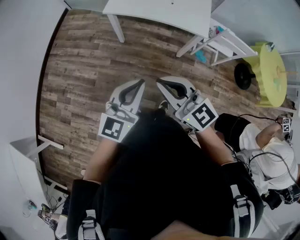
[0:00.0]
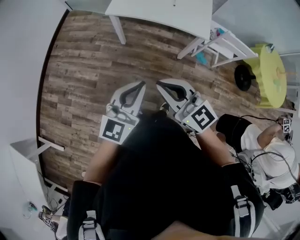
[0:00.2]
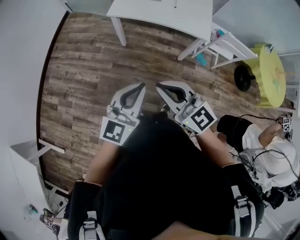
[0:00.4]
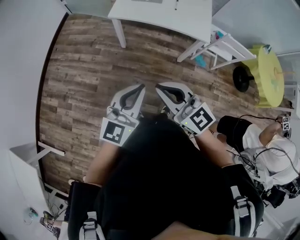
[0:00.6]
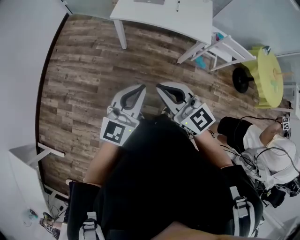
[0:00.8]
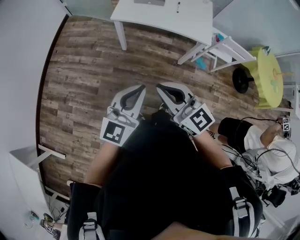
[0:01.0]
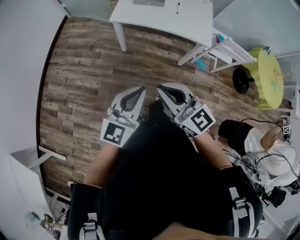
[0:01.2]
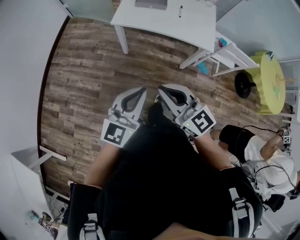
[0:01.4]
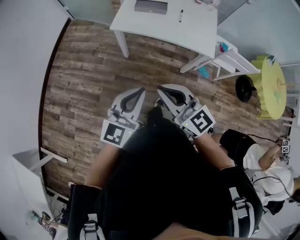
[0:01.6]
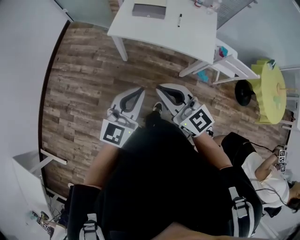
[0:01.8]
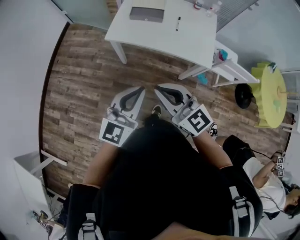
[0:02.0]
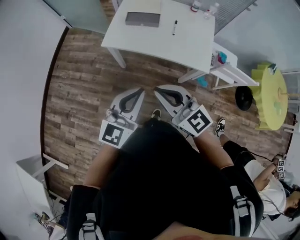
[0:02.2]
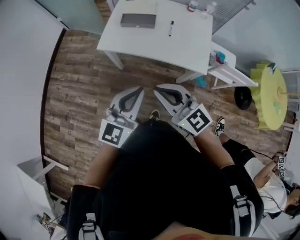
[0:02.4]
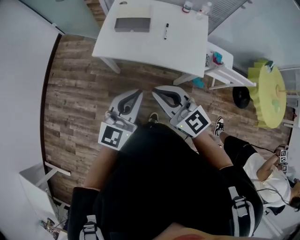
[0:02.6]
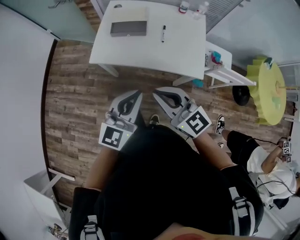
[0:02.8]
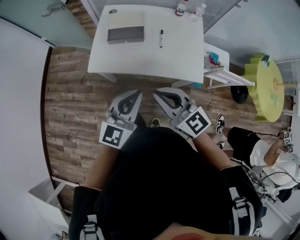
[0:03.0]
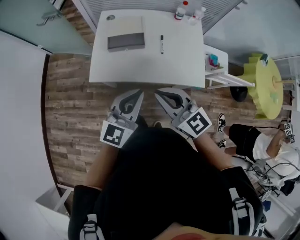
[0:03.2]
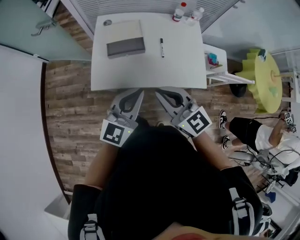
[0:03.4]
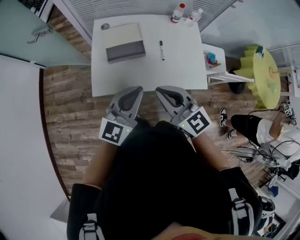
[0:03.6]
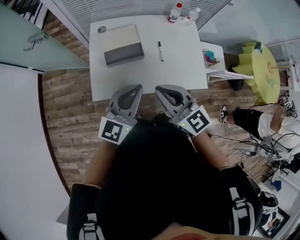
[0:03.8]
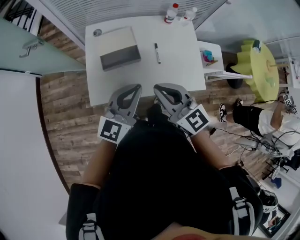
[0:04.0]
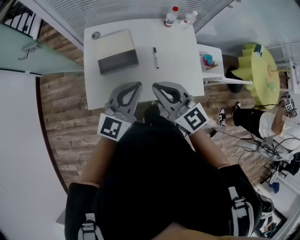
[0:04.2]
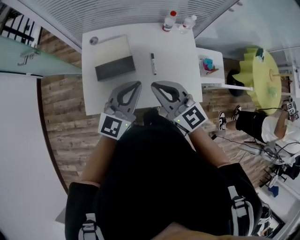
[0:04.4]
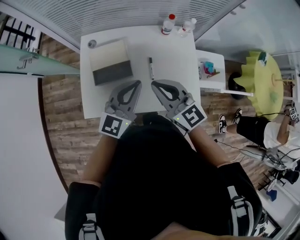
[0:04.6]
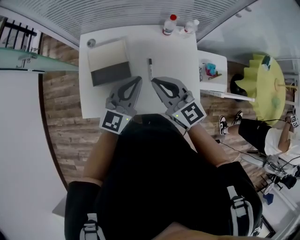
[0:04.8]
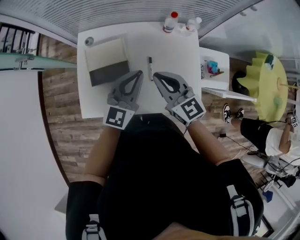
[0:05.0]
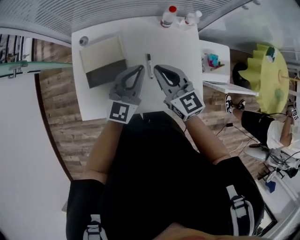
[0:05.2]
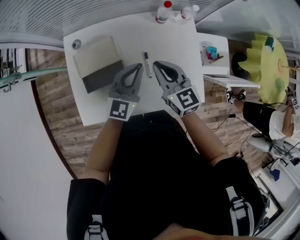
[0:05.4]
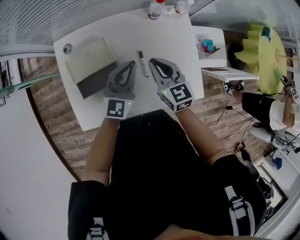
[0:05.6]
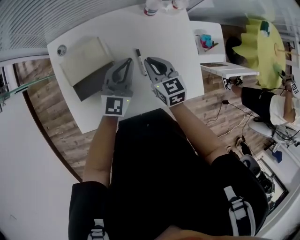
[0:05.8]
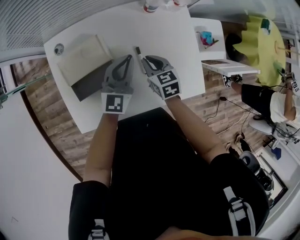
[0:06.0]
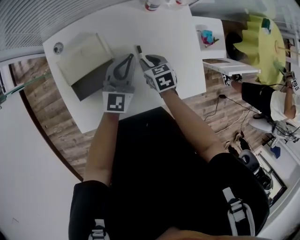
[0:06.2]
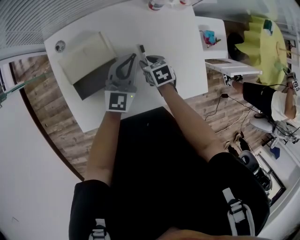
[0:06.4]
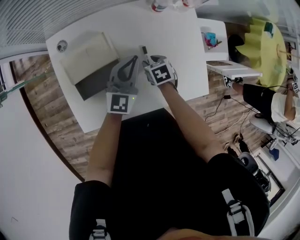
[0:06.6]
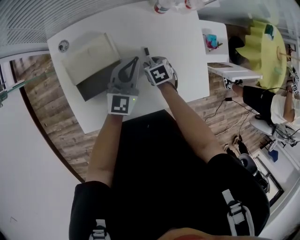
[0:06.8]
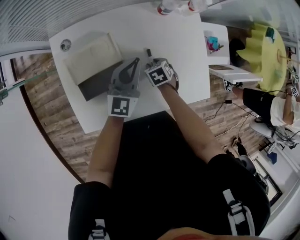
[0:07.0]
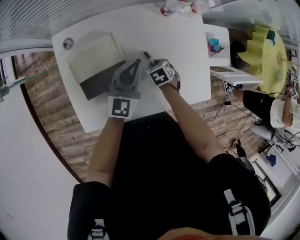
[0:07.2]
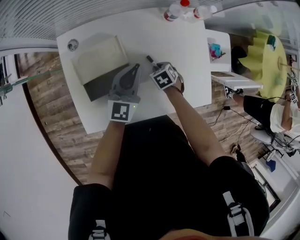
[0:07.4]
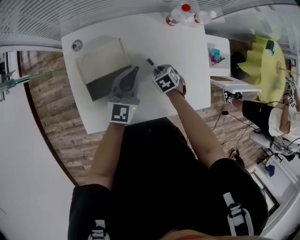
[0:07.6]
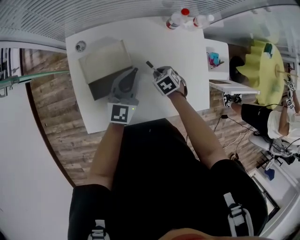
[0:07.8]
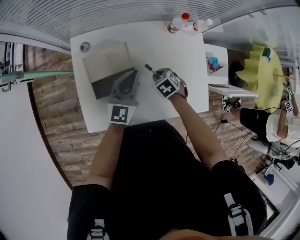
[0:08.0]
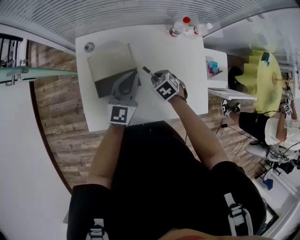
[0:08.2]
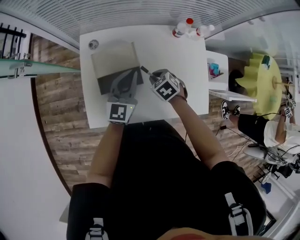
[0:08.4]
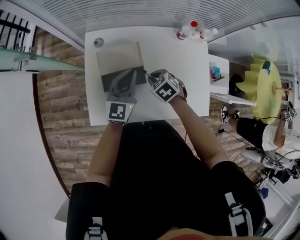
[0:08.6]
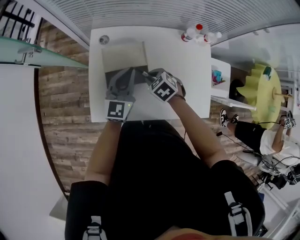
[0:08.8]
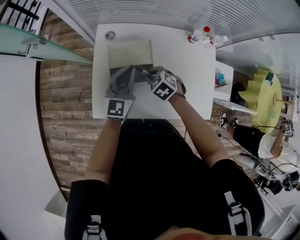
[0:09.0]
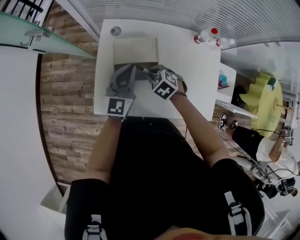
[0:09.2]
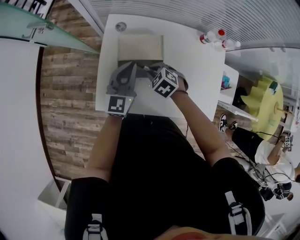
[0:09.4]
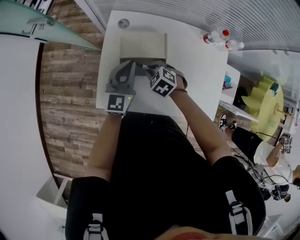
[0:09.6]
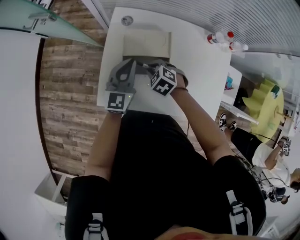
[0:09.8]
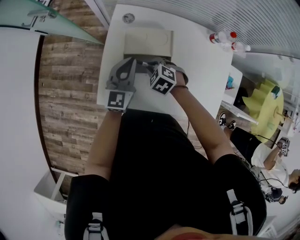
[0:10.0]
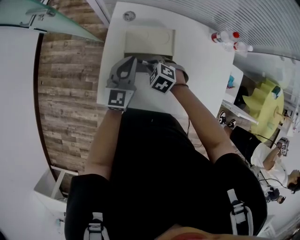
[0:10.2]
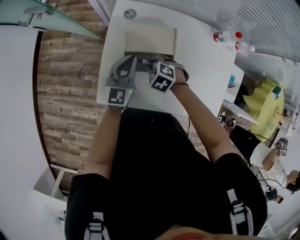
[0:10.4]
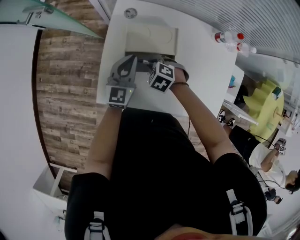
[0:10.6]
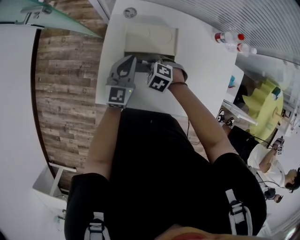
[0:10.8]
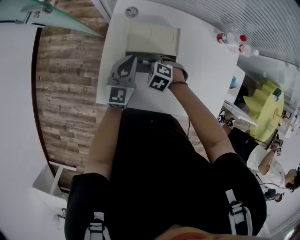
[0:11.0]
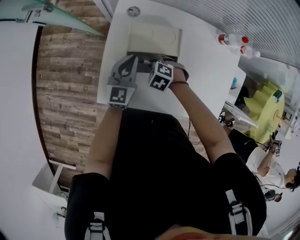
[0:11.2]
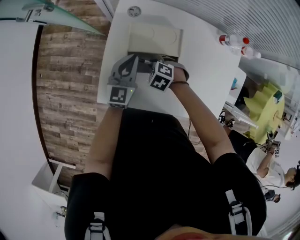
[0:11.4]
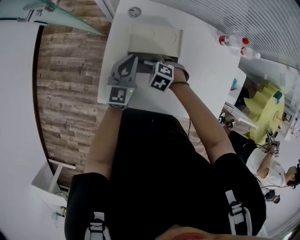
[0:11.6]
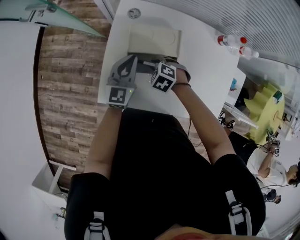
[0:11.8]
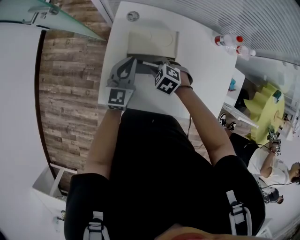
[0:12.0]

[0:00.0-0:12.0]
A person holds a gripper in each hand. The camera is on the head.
0:00.0 to 0:01.6: The grippers both shift forward by about 10 cm.
0:01.6 to 0:03.0: The grippers both shift forward and to the right by roughly 30 cm.
0:03.0 to 0:04.4: Both grippers travel together forward, roughly 25 cm.
0:04.4 to 0:06.0: The right gripper moves downward and forward, some 35 cm, and points its fingers some 40 degrees further downward; the left gripper shifts approximately 25 cm forward and downward.
0:06.0 to 0:07.6: The left gripper ends up roughly 5 cm from where it was, while the right gripper shifts roughly 10 cm downward, rotates about 30 degrees, and opens, then closes again.
0:07.6 to 0:09.0: The left gripper moves approximately 15 cm; the right gripper shifts by about 20 cm, and swivels about 30 degrees.
0:09.0 to 0:10.4: The left gripper shifts approximately 10 cm downward and to the left; the right gripper shifts roughly 10 cm to the left and downward, and changes its angle by about 20 degrees.
0:10.4 to 0:12.0: The grippers make only small movements.

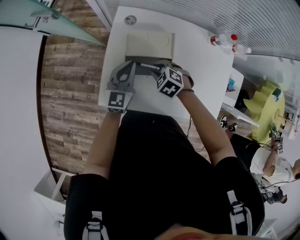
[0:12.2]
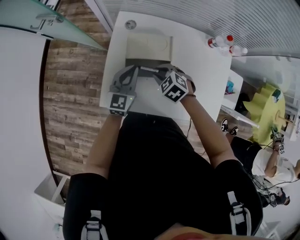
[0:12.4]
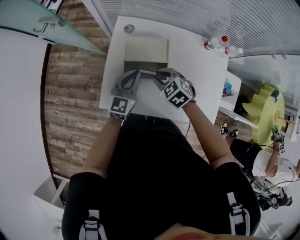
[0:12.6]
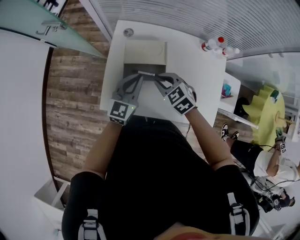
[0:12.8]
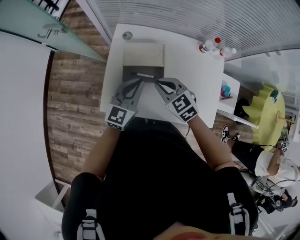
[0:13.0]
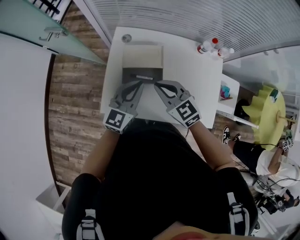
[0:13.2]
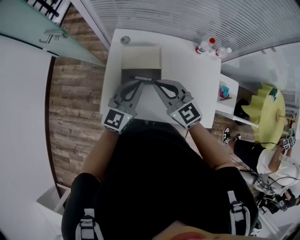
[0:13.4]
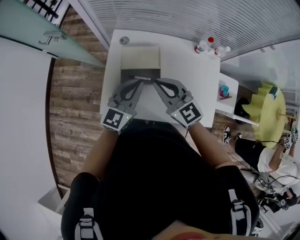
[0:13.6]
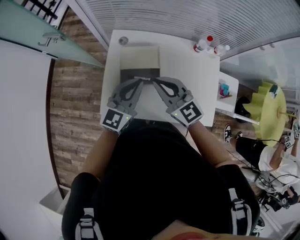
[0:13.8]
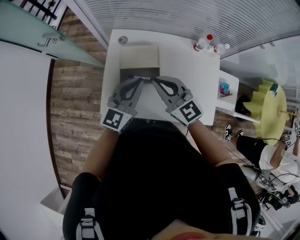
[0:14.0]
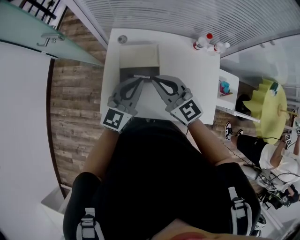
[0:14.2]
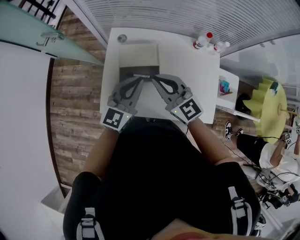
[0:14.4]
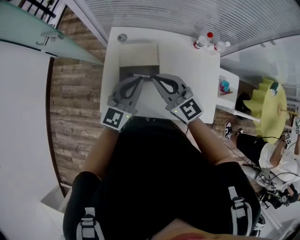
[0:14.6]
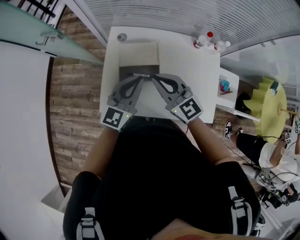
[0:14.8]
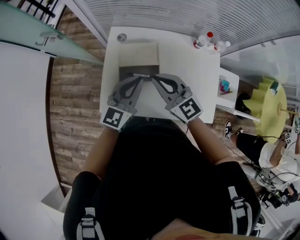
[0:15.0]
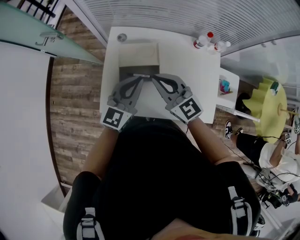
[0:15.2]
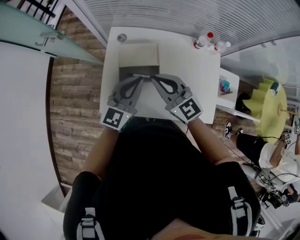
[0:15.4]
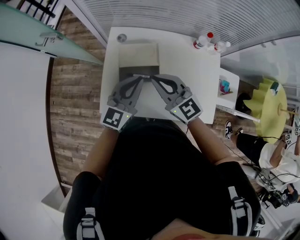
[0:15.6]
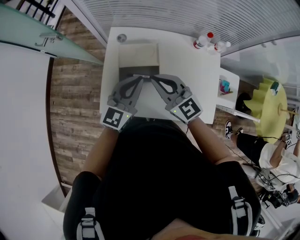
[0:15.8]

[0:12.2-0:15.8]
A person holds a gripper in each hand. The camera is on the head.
0:12.2 to 0:14.0: The right gripper heads upward, covering approximately 25 cm, and points its fingers about 60 degrees further upward, while the left gripper is displaced upward, backward and to the right by about 20 cm.
0:14.0 to 0:15.8: Both grippers stay about where they are.

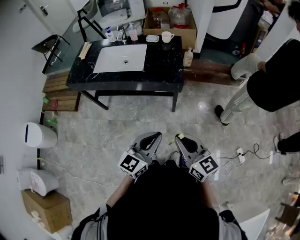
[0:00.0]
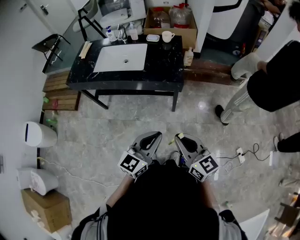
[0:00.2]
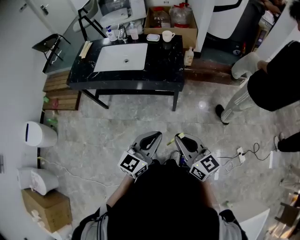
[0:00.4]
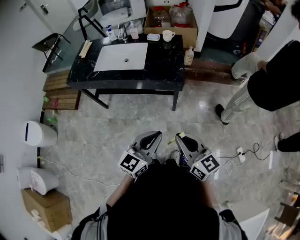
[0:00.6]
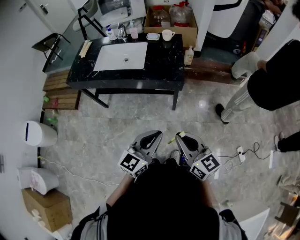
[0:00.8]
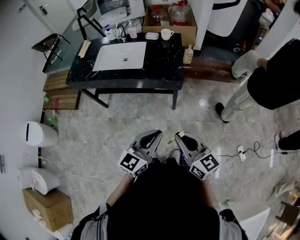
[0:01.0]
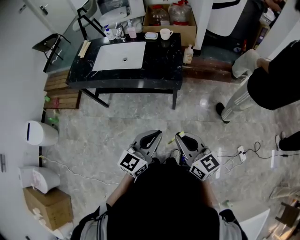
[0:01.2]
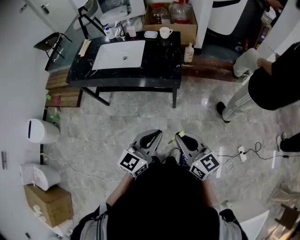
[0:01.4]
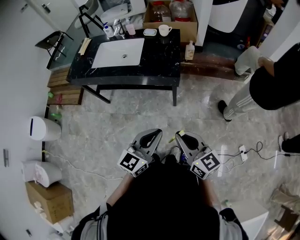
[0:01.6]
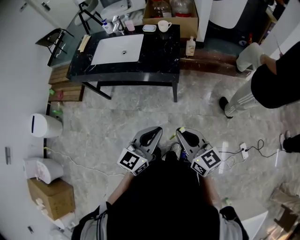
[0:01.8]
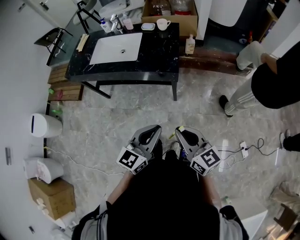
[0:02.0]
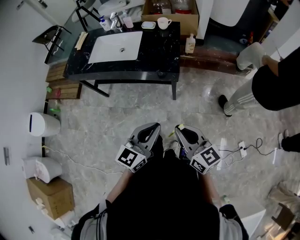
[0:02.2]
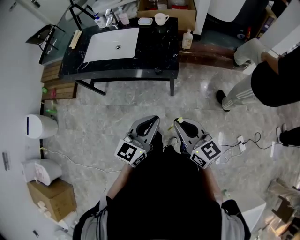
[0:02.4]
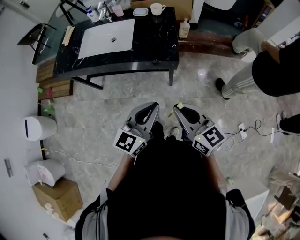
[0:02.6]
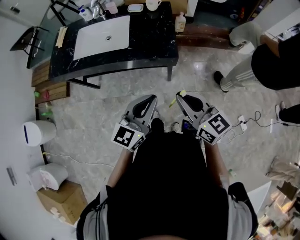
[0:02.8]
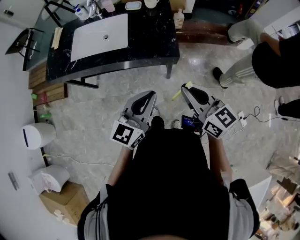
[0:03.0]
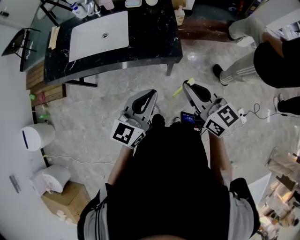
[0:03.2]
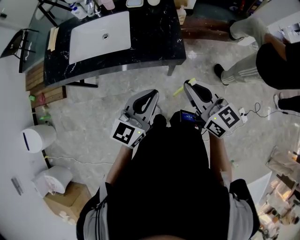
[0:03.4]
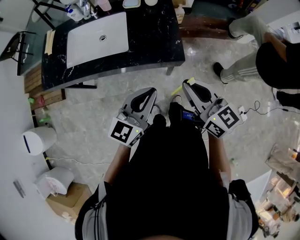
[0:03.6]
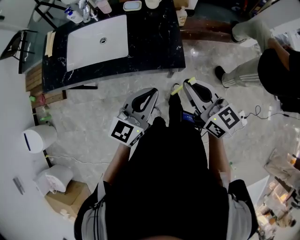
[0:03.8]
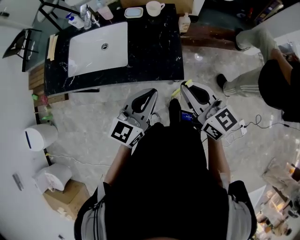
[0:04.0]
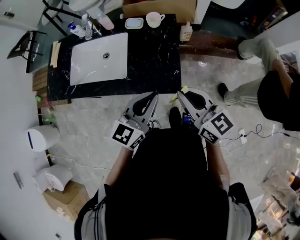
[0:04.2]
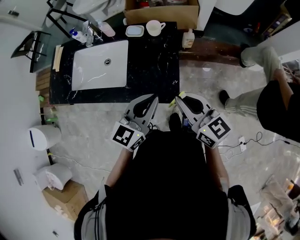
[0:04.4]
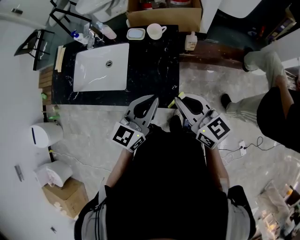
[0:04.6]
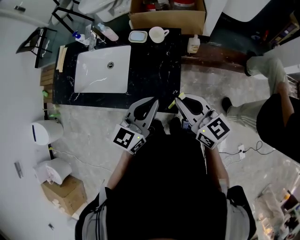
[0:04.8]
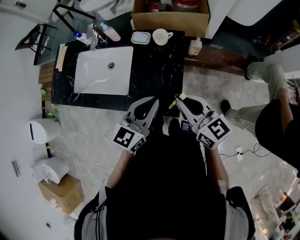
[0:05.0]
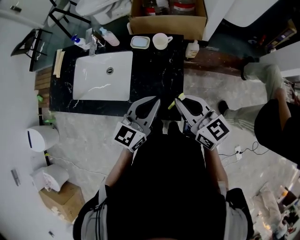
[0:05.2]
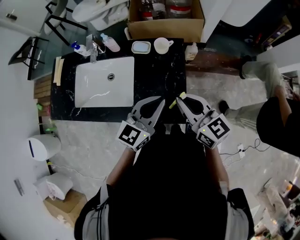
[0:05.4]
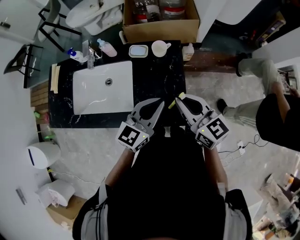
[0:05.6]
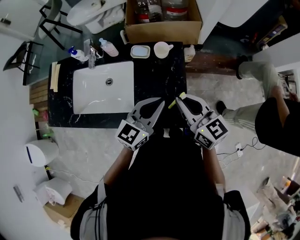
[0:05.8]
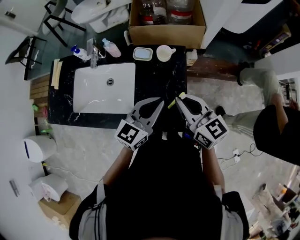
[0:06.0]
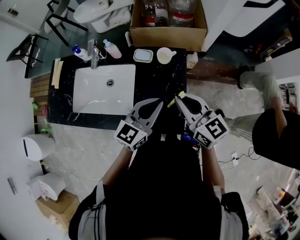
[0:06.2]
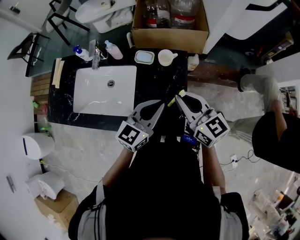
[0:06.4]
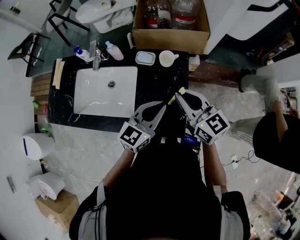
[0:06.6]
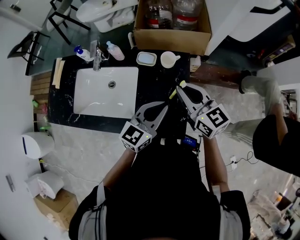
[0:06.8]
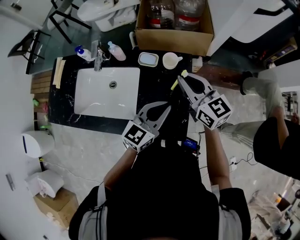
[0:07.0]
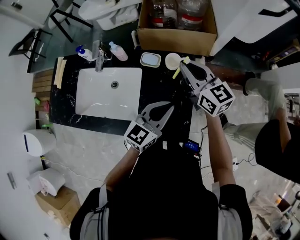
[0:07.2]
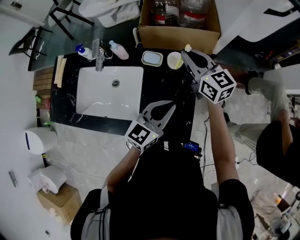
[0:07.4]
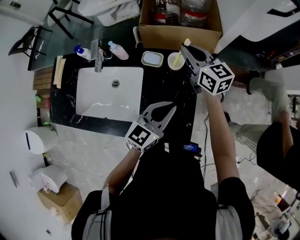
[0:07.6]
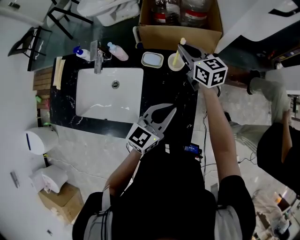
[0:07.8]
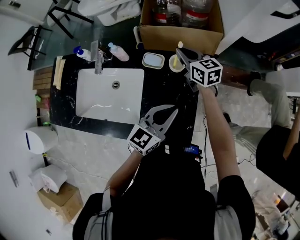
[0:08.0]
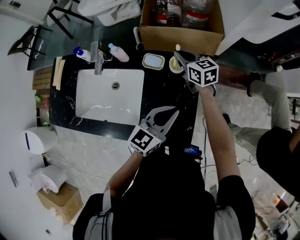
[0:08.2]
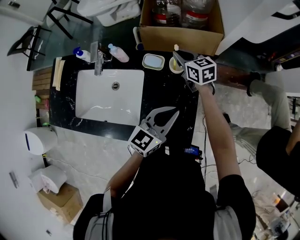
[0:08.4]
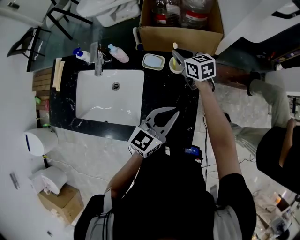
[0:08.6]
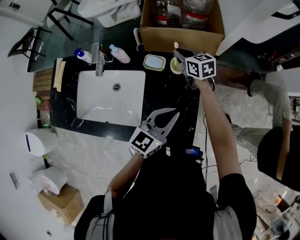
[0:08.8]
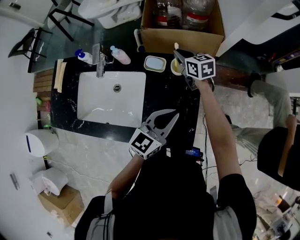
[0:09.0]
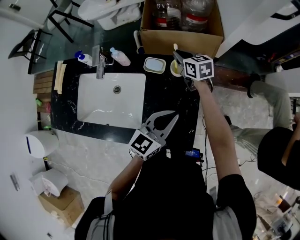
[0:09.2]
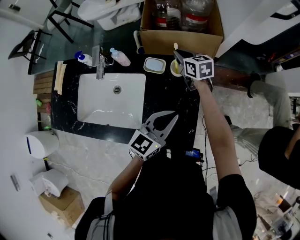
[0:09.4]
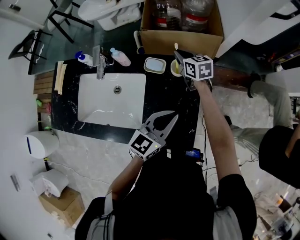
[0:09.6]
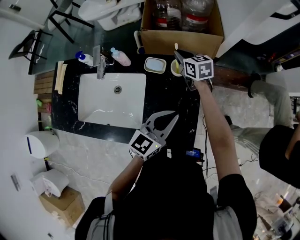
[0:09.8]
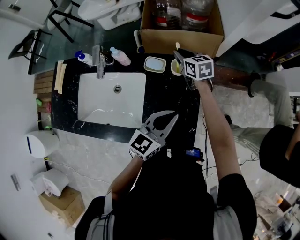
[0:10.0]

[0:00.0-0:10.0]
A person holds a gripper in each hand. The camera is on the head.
0:00.0 to 0:01.4: The grippers move only a little.
0:01.4 to 0:02.8: Both grippers travel together forward, roughly 15 cm.
0:02.8 to 0:04.2: The two grippers go roughly 25 cm forward.
0:04.2 to 0:05.8: Both grippers move forward, approximately 15 cm.
0:05.8 to 0:07.2: The left gripper shifts by some 5 cm. The right gripper moves forward, some 20 cm.
0:07.2 to 0:08.6: The right gripper shifts some 20 cm downward and forward.
0:08.6 to 0:10.0: The grippers move only a little.
